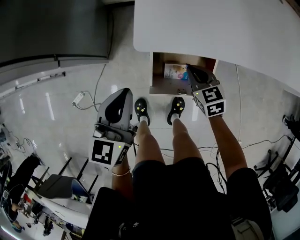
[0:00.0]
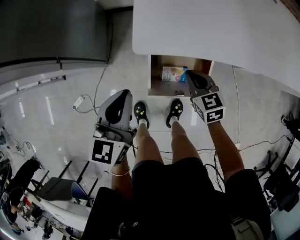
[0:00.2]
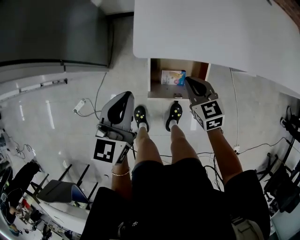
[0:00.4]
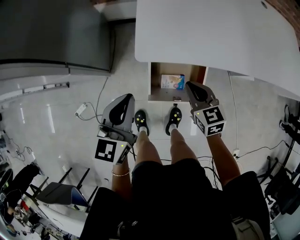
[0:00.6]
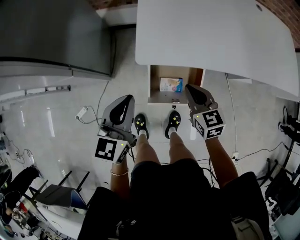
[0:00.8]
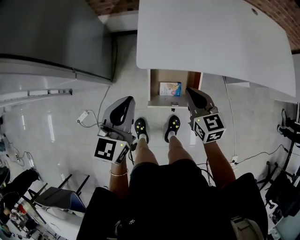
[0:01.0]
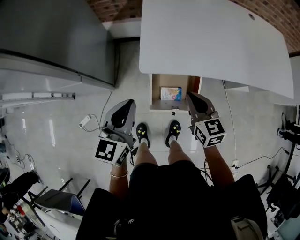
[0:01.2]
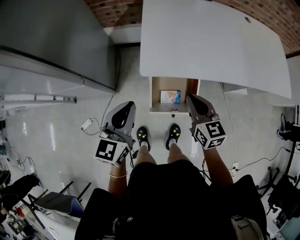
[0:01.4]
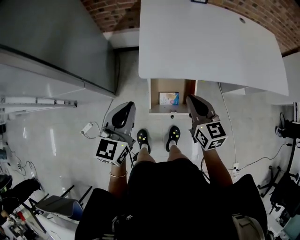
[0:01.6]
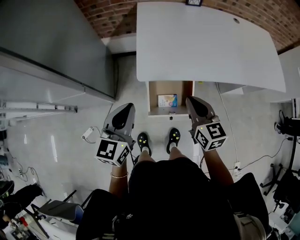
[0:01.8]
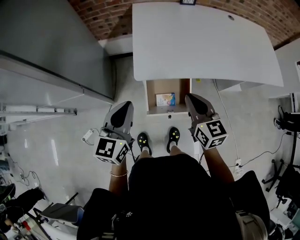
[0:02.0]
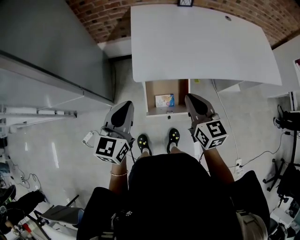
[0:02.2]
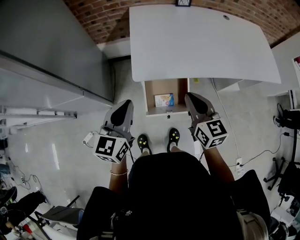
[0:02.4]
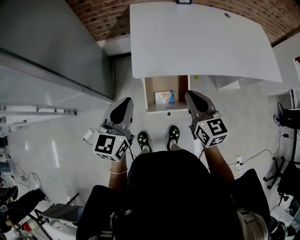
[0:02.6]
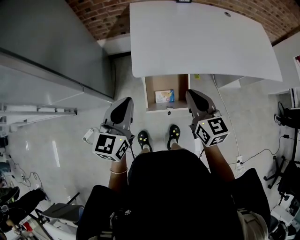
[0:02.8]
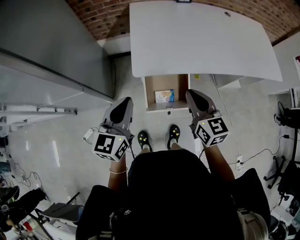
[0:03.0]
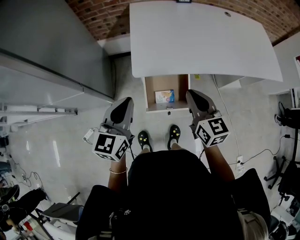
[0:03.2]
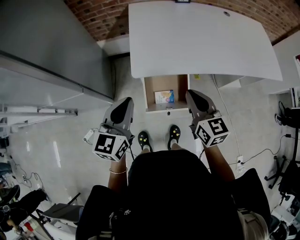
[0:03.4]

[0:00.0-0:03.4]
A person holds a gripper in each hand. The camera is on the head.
0:00.0 to 0:01.6: The right gripper moves upward, about 25 cm, and rotates some 30 degrees. The left gripper travels upward by roughly 15 cm.
0:01.6 to 0:03.4: The right gripper travels upward by about 5 cm.

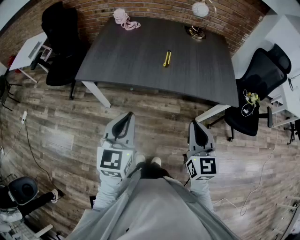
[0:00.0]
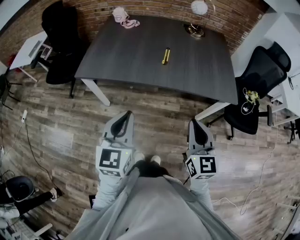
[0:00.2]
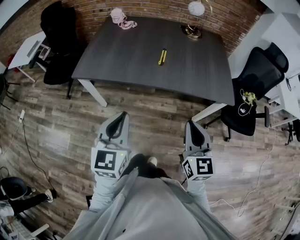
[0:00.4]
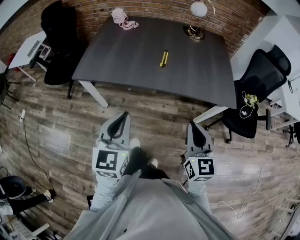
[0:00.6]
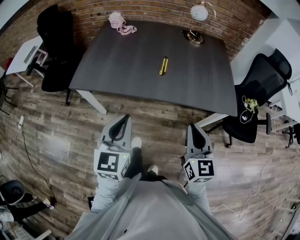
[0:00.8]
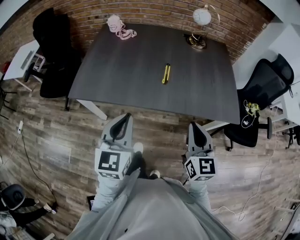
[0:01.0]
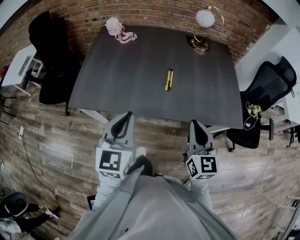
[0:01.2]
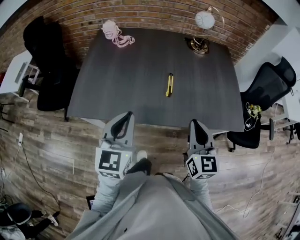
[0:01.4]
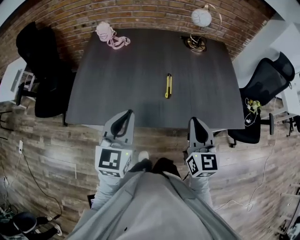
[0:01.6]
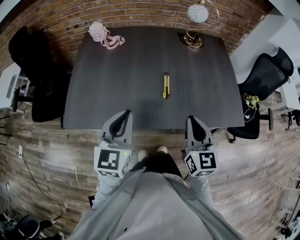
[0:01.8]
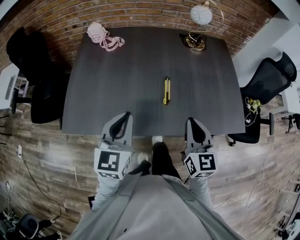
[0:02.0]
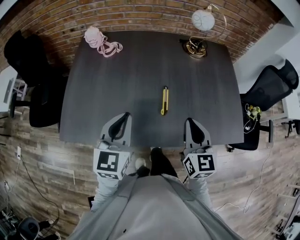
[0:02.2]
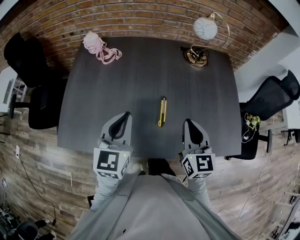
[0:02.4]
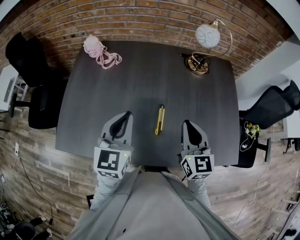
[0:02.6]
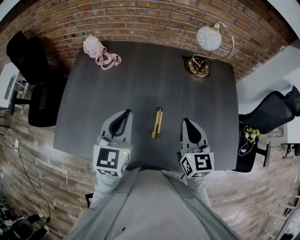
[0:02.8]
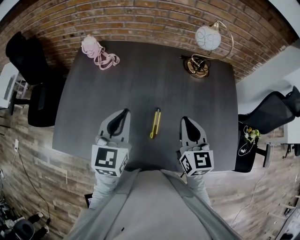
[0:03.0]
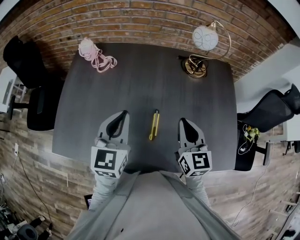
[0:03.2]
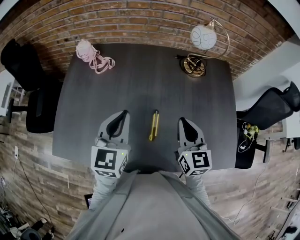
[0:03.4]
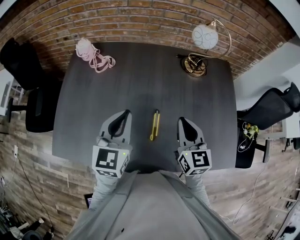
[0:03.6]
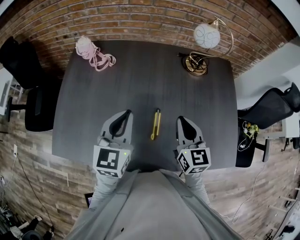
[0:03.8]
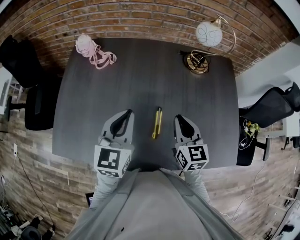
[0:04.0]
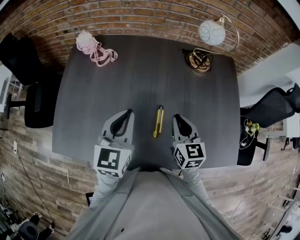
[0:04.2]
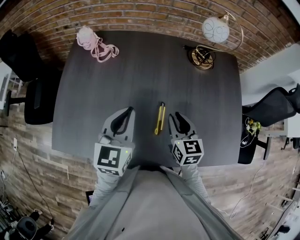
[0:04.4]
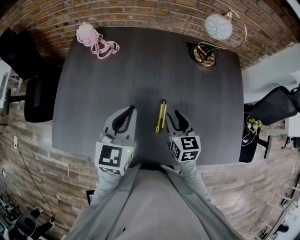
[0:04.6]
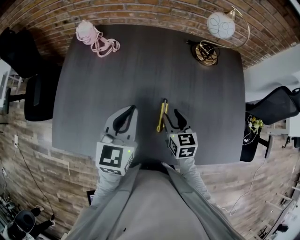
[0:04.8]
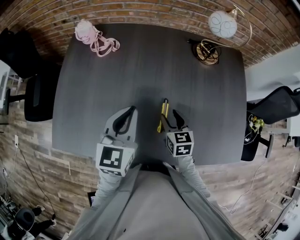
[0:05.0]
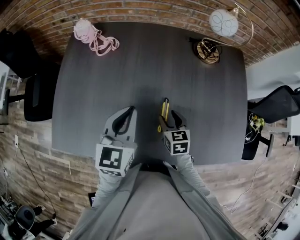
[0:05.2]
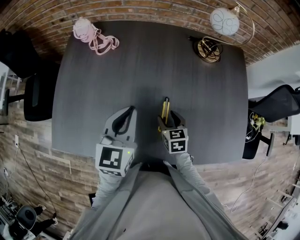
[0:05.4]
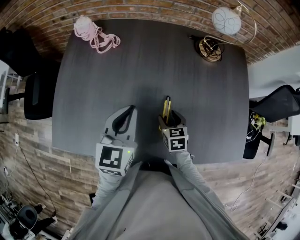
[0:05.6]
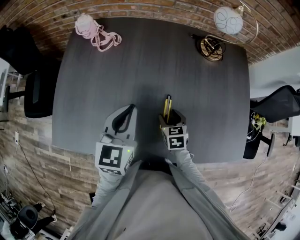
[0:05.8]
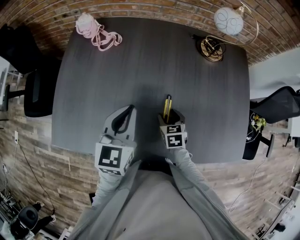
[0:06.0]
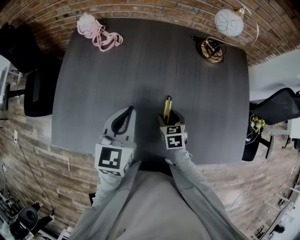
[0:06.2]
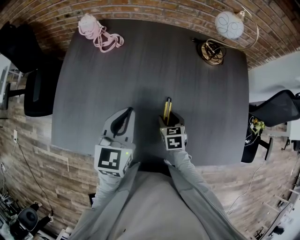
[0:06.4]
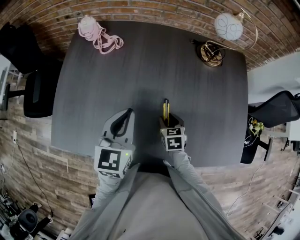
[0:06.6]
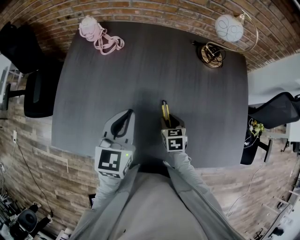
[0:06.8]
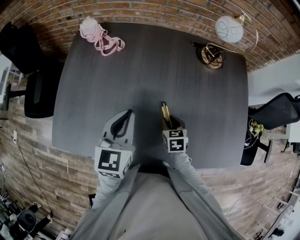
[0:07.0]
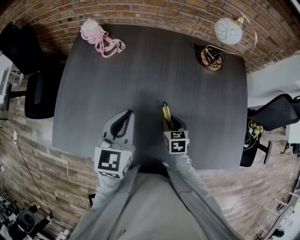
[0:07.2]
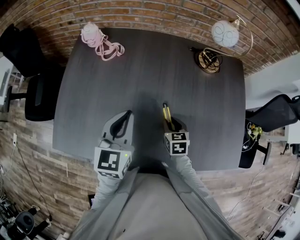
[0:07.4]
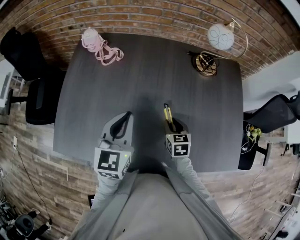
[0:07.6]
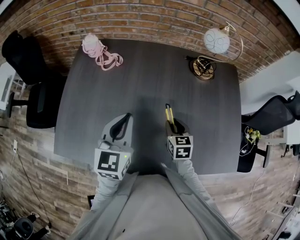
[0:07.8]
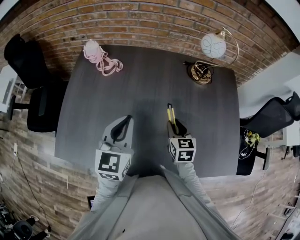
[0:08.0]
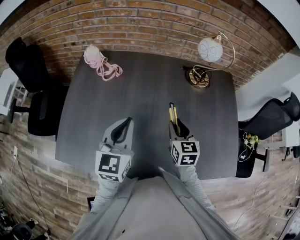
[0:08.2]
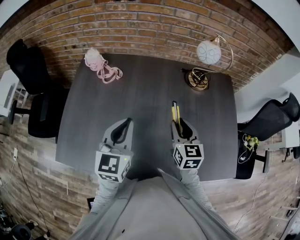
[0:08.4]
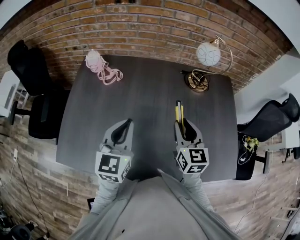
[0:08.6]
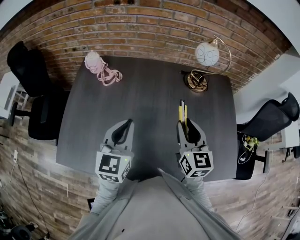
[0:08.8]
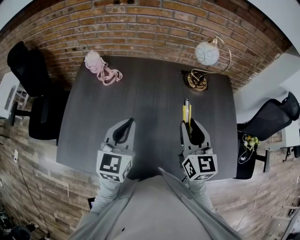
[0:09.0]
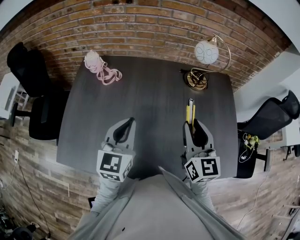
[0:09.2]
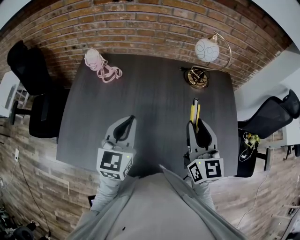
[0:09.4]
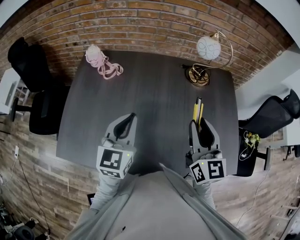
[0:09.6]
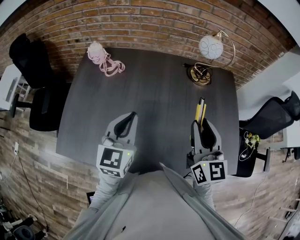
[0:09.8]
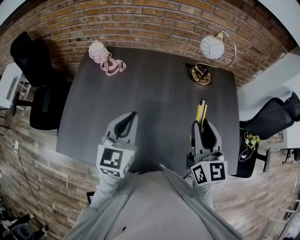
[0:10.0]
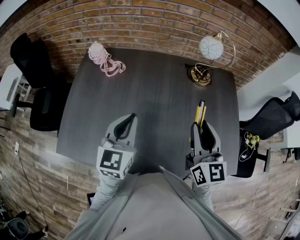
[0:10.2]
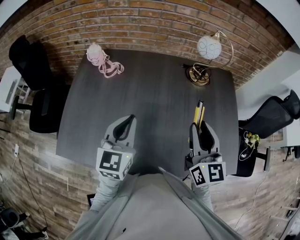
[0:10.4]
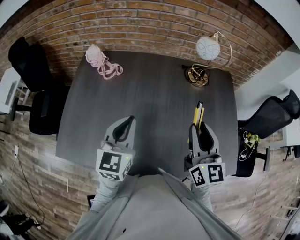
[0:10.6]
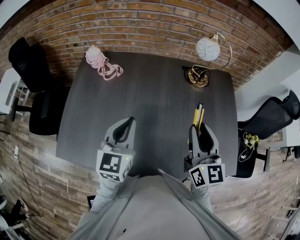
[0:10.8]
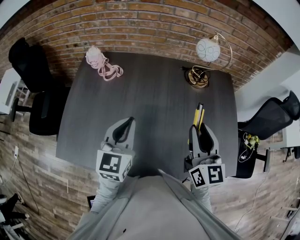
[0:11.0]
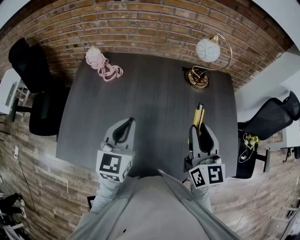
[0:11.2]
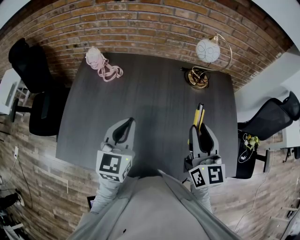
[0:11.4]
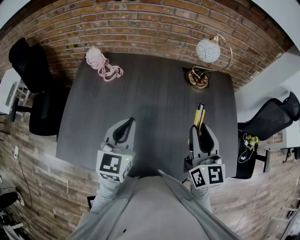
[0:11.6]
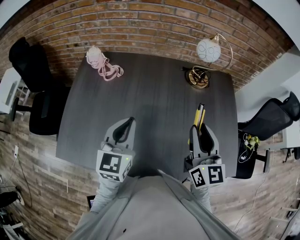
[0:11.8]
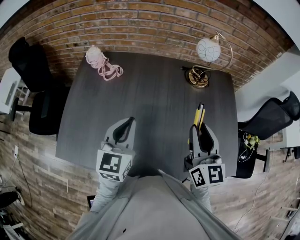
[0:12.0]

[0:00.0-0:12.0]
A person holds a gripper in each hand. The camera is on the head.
0:00.0 to 0:01.6: Both grippers move forward, about 25 cm.
0:01.6 to 0:03.0: The grippers both shift forward by some 25 cm.
0:03.0 to 0:04.4: The right gripper goes some 10 cm downward.
0:04.4 to 0:06.0: The right gripper heads downward, covering roughly 15 cm, turns by about 20 degrees, and opens.
0:06.0 to 0:07.6: The right gripper shifts some 5 cm upward, and closes its fingers.
0:07.6 to 0:09.0: The right gripper is displaced upward by some 25 cm, and tips its fingers upward by roughly 40 degrees.
0:09.0 to 0:10.4: The right gripper moves roughly 5 cm.
0:10.4 to 0:12.0: Both grippers stay put.

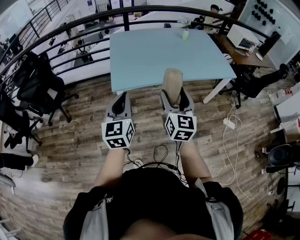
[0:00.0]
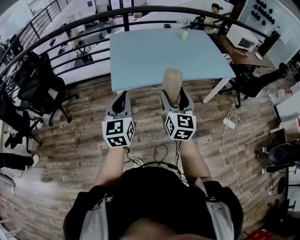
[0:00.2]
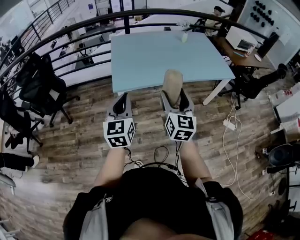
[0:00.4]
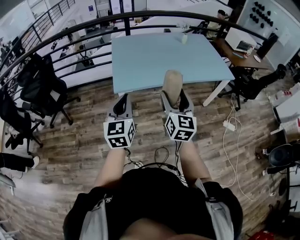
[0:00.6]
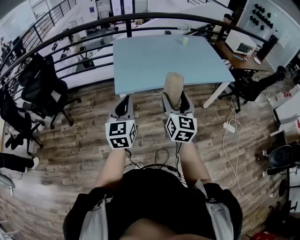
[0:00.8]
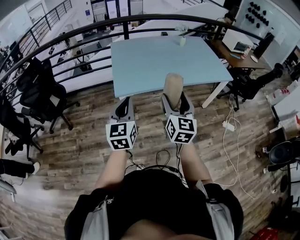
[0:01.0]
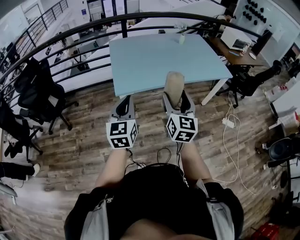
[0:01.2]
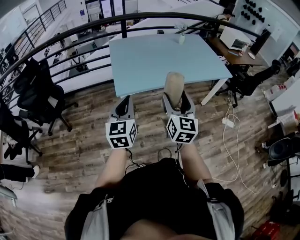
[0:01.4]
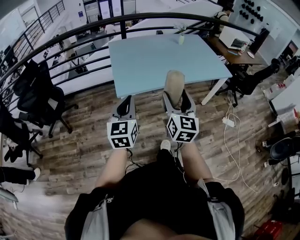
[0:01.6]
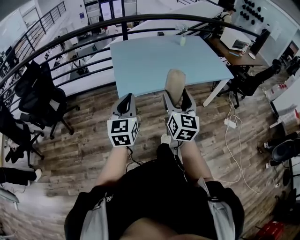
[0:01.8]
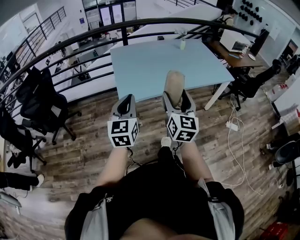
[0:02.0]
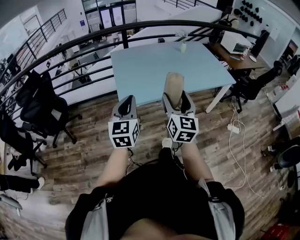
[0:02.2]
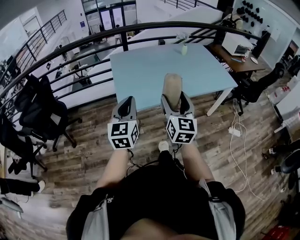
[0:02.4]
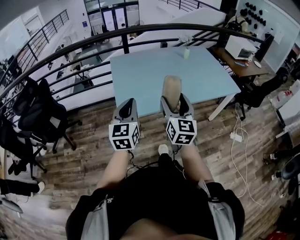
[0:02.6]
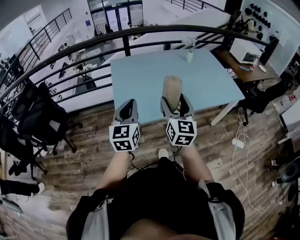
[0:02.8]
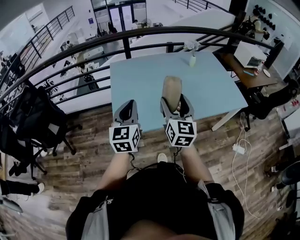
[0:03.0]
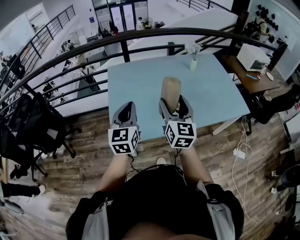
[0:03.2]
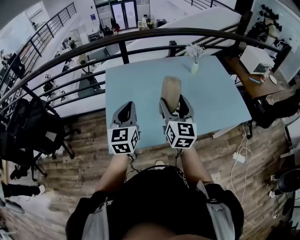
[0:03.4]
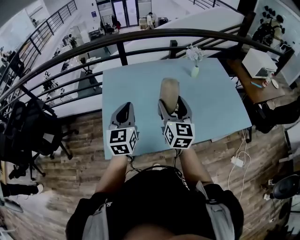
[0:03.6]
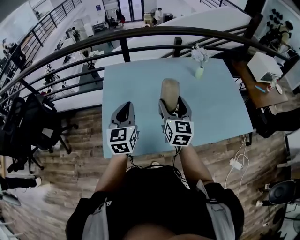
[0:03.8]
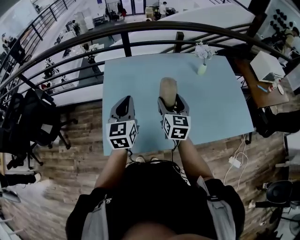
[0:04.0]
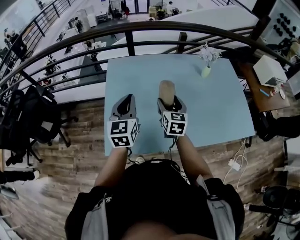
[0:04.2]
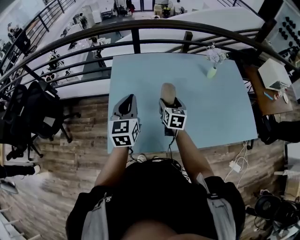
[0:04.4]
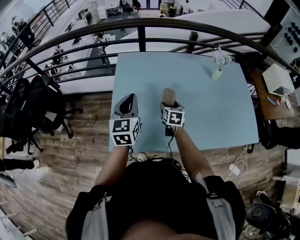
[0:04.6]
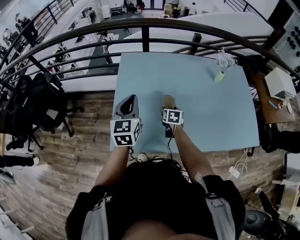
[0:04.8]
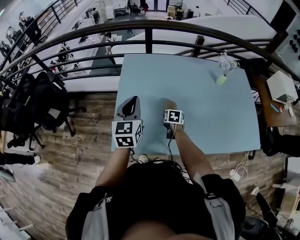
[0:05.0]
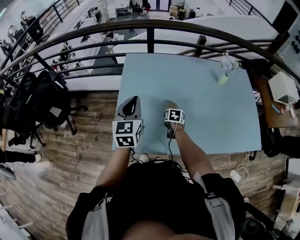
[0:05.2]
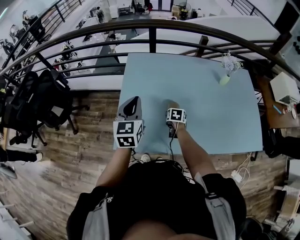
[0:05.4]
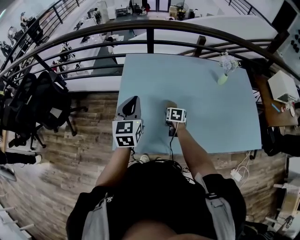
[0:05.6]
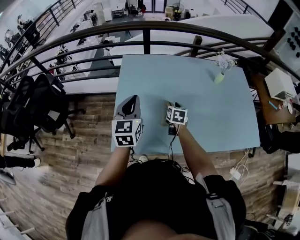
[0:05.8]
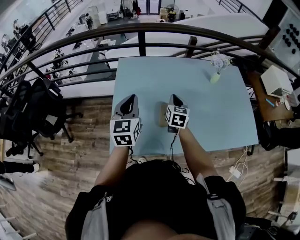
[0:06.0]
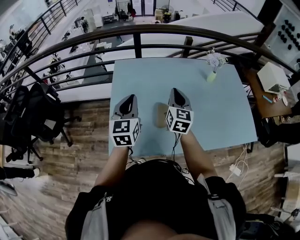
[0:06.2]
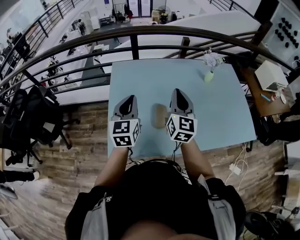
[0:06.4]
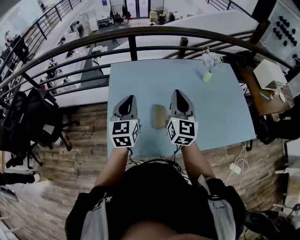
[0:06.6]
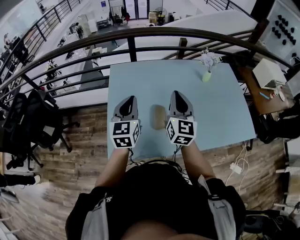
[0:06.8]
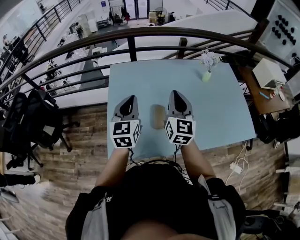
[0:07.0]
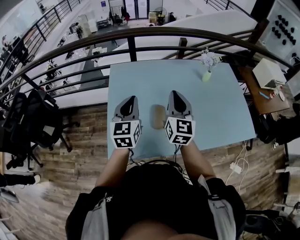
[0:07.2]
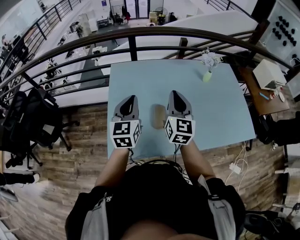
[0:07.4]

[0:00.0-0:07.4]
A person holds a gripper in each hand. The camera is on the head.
0:00.0 to 0:01.4: The right gripper changes place by roughly 5 cm.
0:01.4 to 0:03.0: Both grippers travel together forward, about 30 cm.
0:03.0 to 0:04.4: The right gripper shifts approximately 35 cm forward and downward, and swivels approximately 30 degrees, while the left gripper moves forward, some 25 cm.
0:04.4 to 0:06.0: The right gripper moves about 15 cm downward and comes back, and closes up.
0:06.0 to 0:07.4: The right gripper is displaced upward and backward by approximately 15 cm, and rotates some 20 degrees.

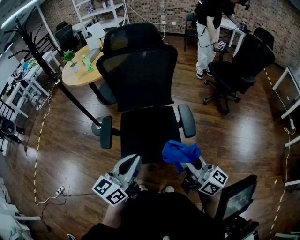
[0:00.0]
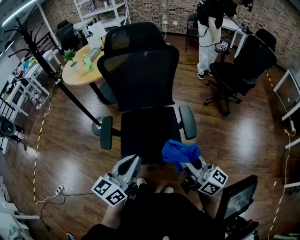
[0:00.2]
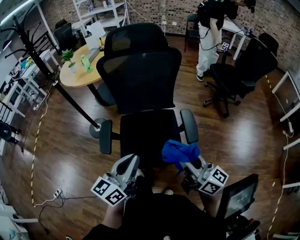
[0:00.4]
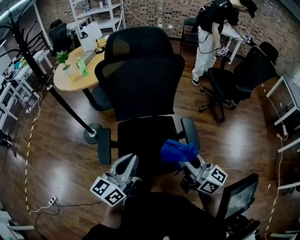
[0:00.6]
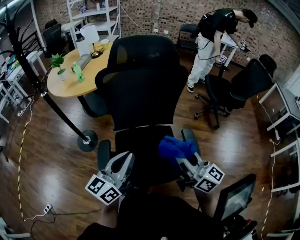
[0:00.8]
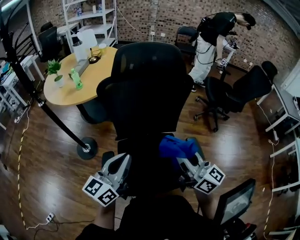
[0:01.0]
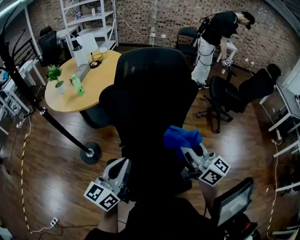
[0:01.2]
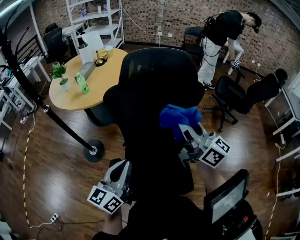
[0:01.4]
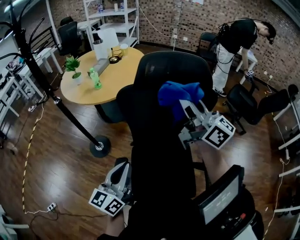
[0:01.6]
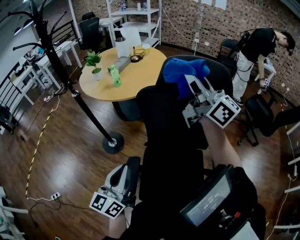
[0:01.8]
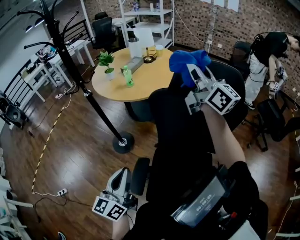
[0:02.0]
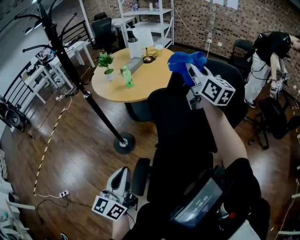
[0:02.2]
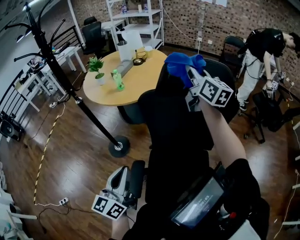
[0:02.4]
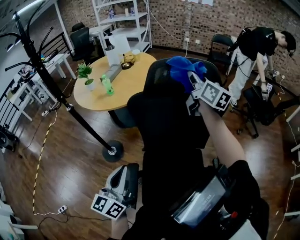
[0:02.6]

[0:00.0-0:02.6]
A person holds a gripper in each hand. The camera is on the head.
0:00.0 to 0:01.2: The right gripper moves forward, about 30 cm. The left gripper goes roughly 30 cm forward and to the left.
0:01.2 to 0:02.6: The left gripper is displaced to the left by roughly 10 cm, and turns by some 20 degrees. Meanwhile the right gripper travels forward by approximately 35 cm.
